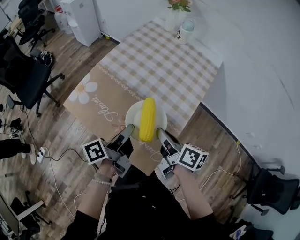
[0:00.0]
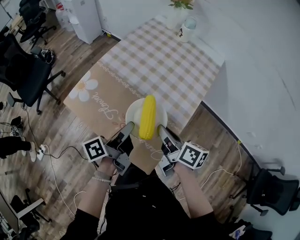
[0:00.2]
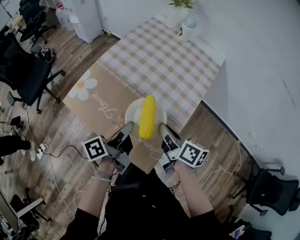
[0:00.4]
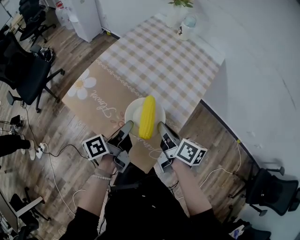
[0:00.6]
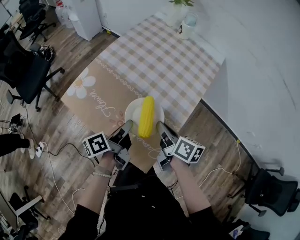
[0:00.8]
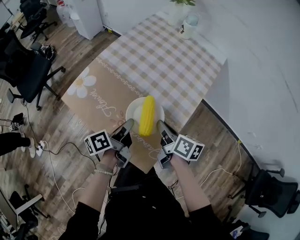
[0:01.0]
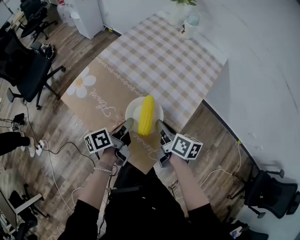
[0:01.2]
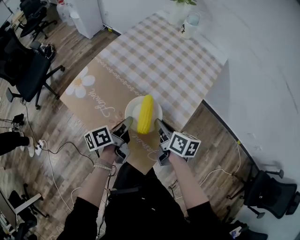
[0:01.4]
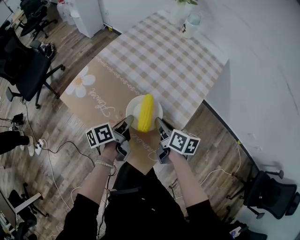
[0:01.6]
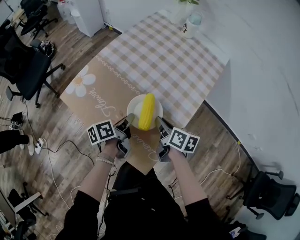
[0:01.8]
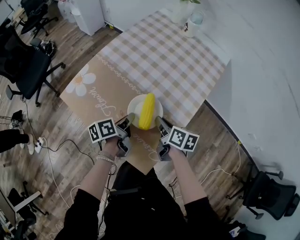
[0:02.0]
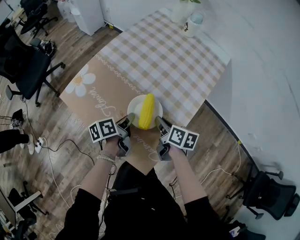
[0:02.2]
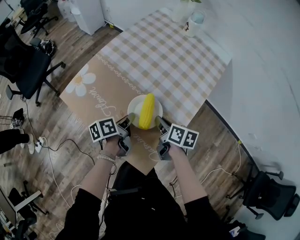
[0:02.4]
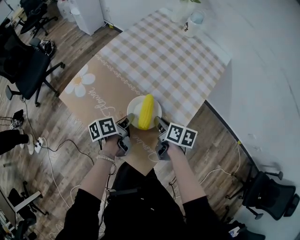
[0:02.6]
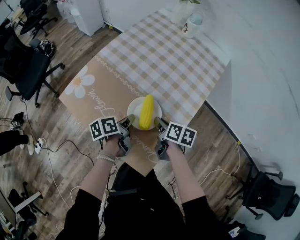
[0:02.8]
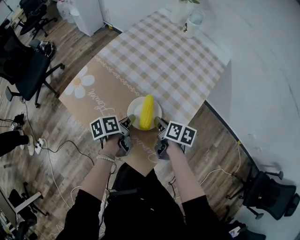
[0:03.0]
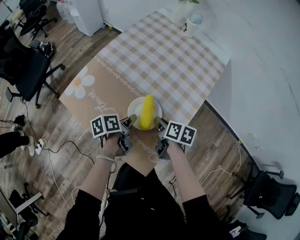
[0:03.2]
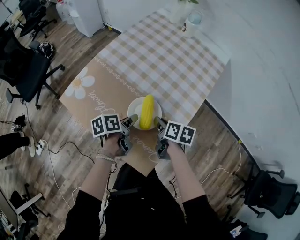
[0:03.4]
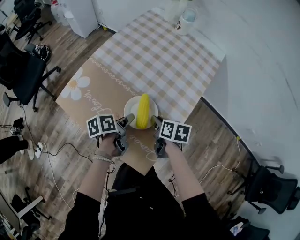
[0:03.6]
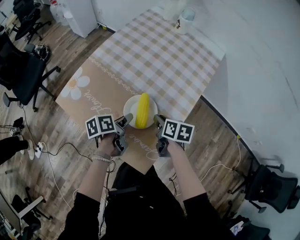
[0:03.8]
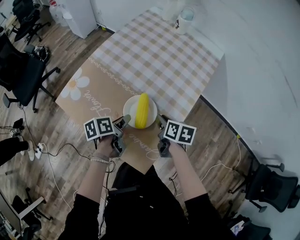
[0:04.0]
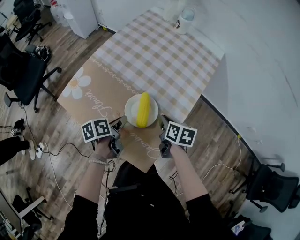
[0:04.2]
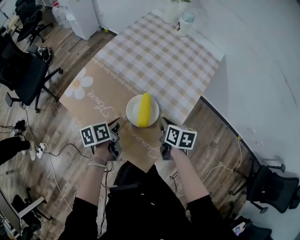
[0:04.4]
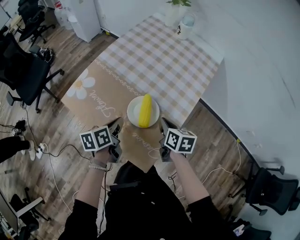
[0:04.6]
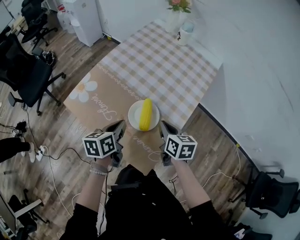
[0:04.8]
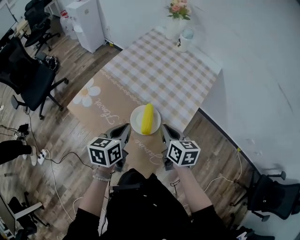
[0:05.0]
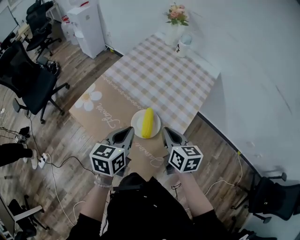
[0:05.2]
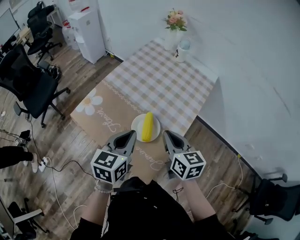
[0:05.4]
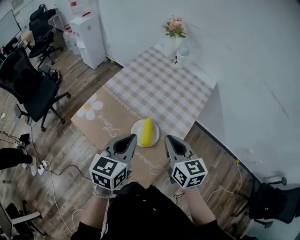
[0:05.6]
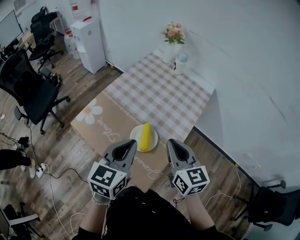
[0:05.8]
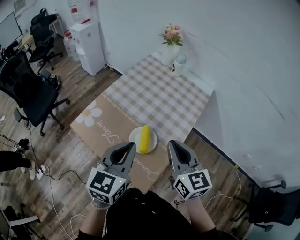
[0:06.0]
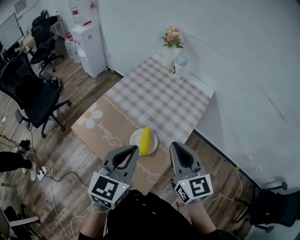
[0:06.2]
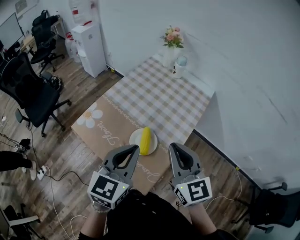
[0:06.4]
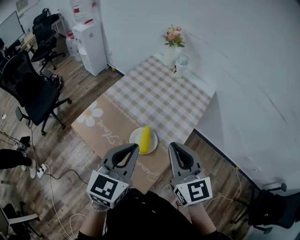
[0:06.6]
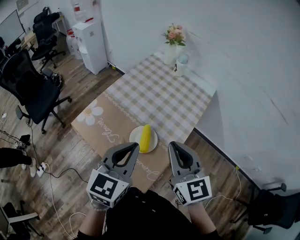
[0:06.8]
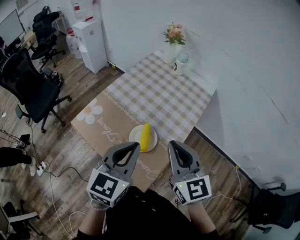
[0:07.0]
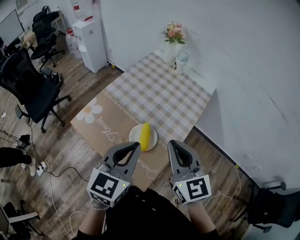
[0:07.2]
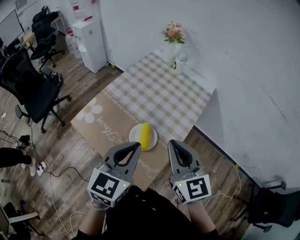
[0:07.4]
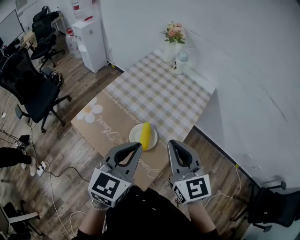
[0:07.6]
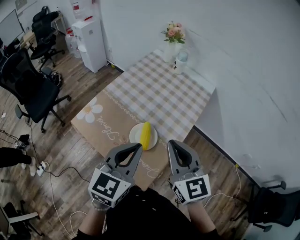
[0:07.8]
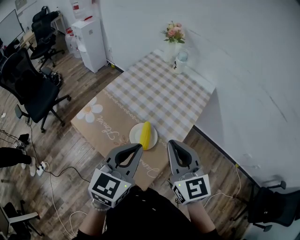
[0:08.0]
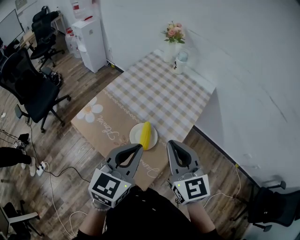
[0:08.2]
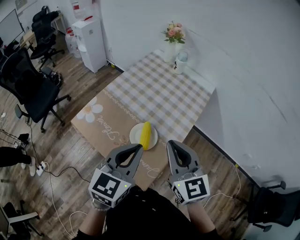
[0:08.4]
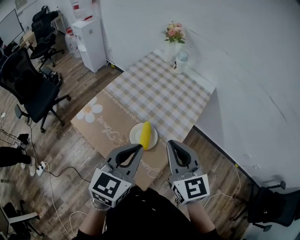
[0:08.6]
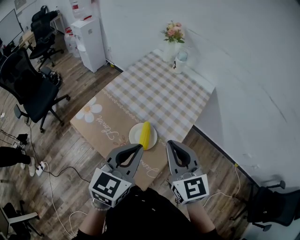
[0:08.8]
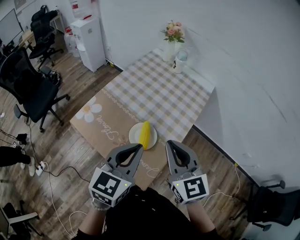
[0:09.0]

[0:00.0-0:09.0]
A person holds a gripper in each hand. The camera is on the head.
0:00.0 to 0:01.6: Both grippers travel together downward, approximately 10 cm.
0:01.6 to 0:03.0: The grippers move only a little.
0:03.0 to 0:04.4: The right gripper moves approximately 5 cm, while the left gripper changes place by about 5 cm, and opens, then closes once more.
0:04.4 to 0:06.0: Both grippers travel together upward, some 25 cm. The left gripper rotates around the line of its fingers by roughly 50 degrees, clockwise from behind; the right gripper points its fingers approximately 30 degrees further upward.
0:06.0 to 0:07.6: The grippers move only a little.
0:07.6 to 0:09.0: Neither gripper changes place.

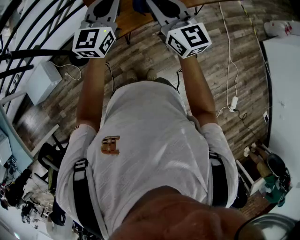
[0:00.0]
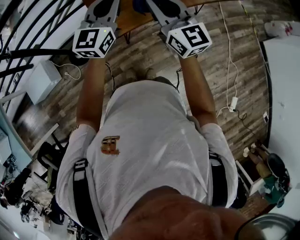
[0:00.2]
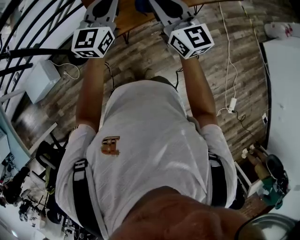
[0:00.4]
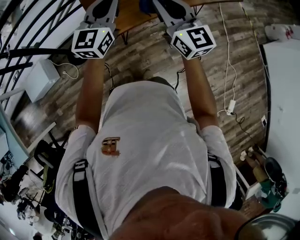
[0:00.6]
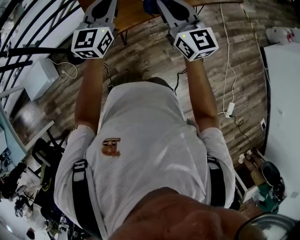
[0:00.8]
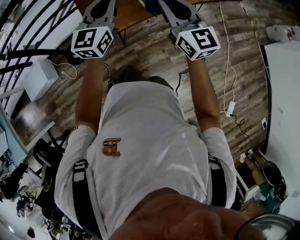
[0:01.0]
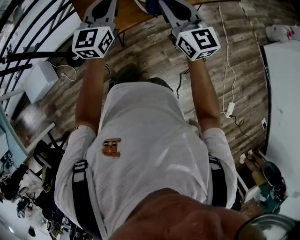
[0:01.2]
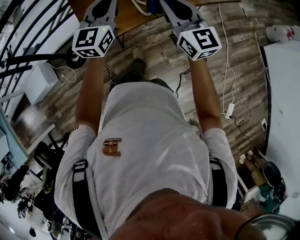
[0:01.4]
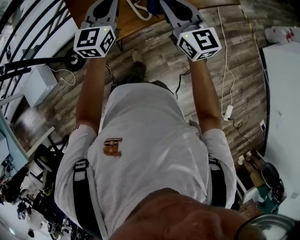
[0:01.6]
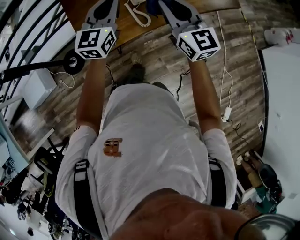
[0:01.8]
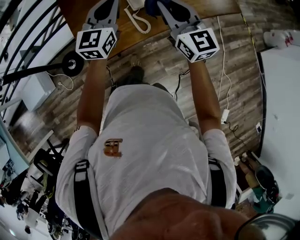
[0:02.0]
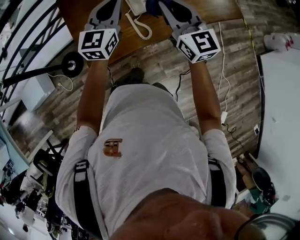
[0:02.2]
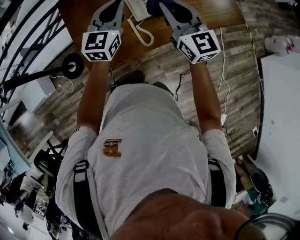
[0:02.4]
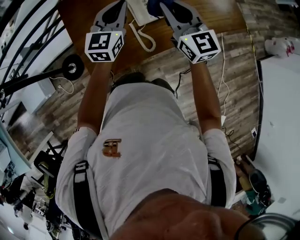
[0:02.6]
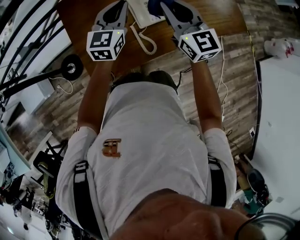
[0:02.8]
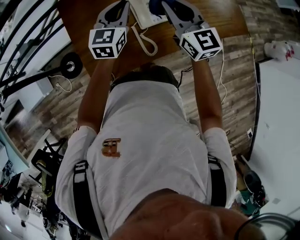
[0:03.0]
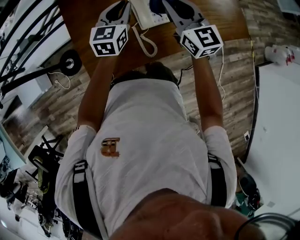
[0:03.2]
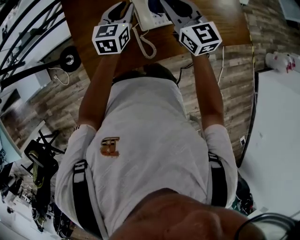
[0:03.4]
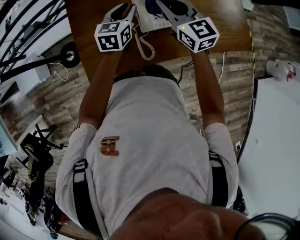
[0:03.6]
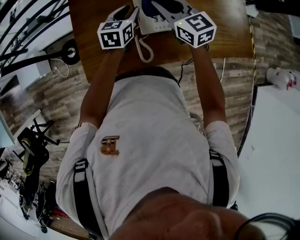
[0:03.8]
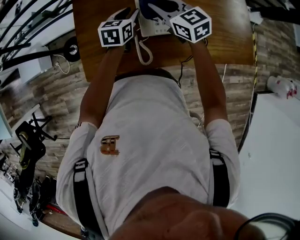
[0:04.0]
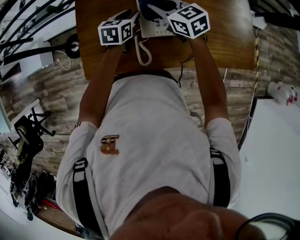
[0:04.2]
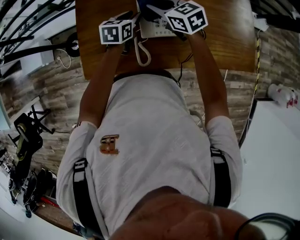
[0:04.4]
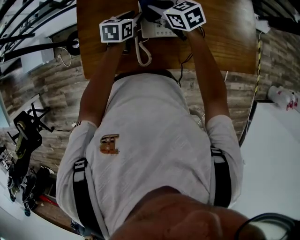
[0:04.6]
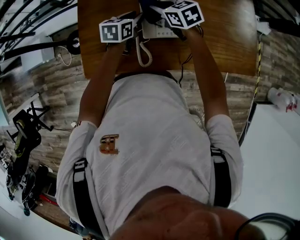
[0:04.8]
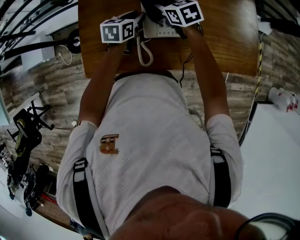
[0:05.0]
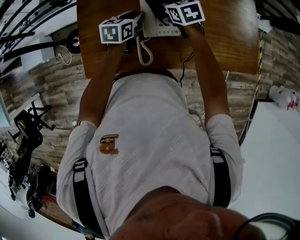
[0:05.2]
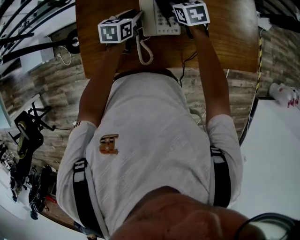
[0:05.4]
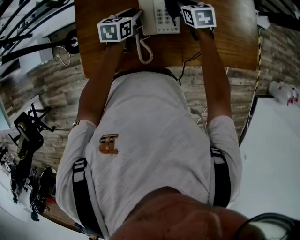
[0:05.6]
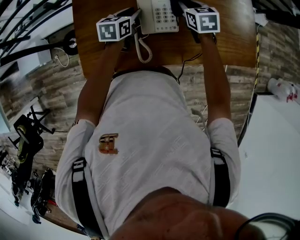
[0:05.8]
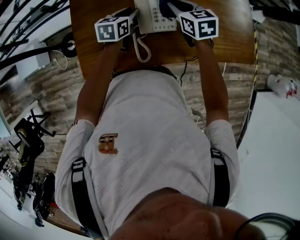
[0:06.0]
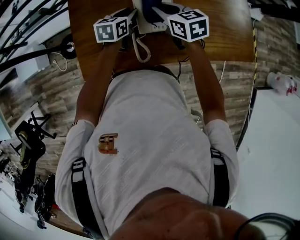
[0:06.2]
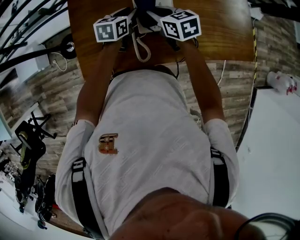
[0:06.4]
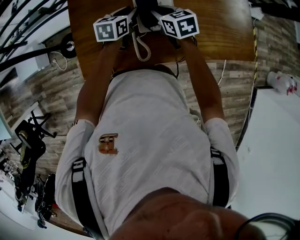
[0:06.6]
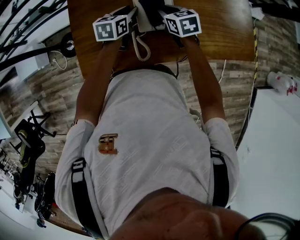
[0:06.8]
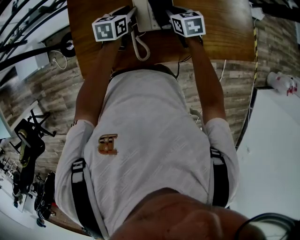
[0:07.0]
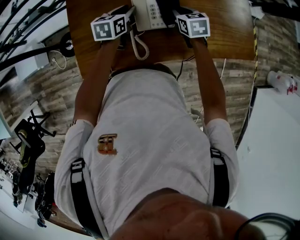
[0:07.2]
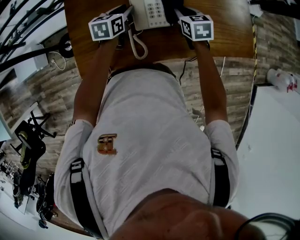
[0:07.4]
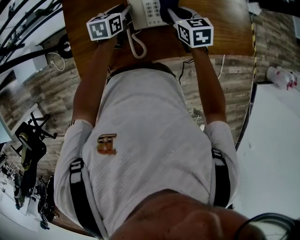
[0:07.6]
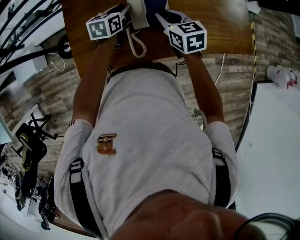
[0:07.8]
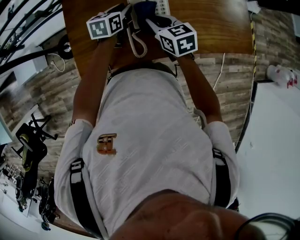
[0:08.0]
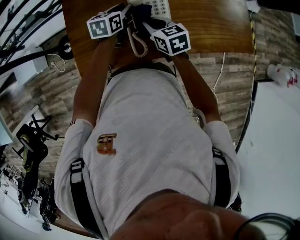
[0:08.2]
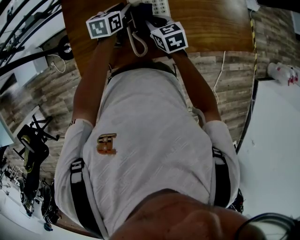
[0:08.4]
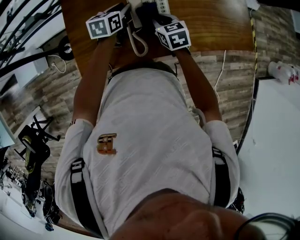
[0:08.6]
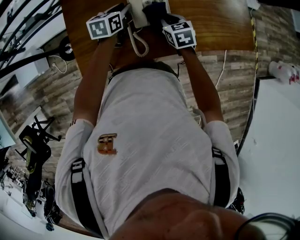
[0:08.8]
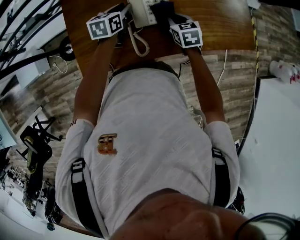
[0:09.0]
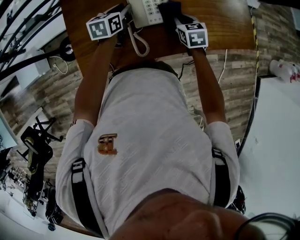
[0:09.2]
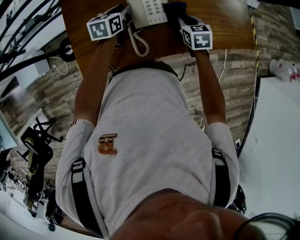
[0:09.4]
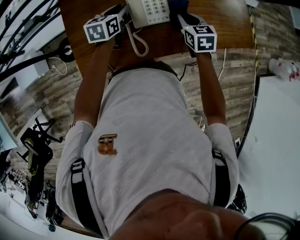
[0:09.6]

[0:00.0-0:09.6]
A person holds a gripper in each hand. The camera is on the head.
0:00.0 to 0:01.6: Both grippers move to the right and forward, approximately 20 cm.
0:01.6 to 0:03.2: Both grippers travel together forward, approximately 35 cm. The left gripper rotates about 20 degrees.
0:03.2 to 0:04.8: The right gripper goes roughly 20 cm downward and forward, and turns by approximately 50 degrees, while the left gripper goes roughly 10 cm downward, and rotates some 30 degrees.
0:04.8 to 0:06.4: The right gripper goes some 5 cm backward, and goes to the right and returns, roughly 10 cm each way.
0:06.4 to 0:08.0: The right gripper shifts roughly 5 cm backward, and moves about 10 cm to the right and comes back.
0:08.0 to 0:09.6: The right gripper shifts roughly 10 cm to the right.

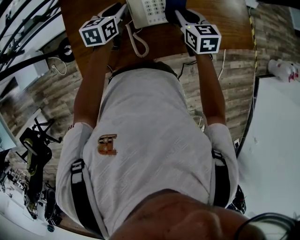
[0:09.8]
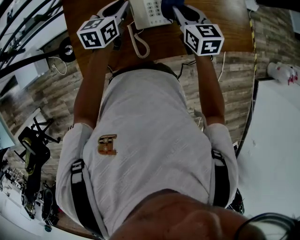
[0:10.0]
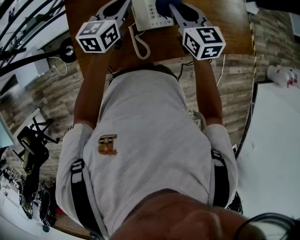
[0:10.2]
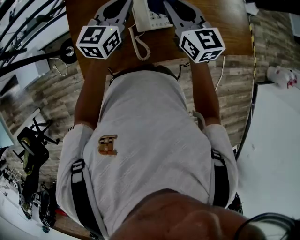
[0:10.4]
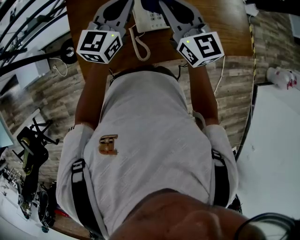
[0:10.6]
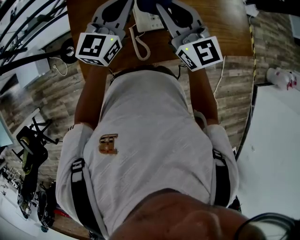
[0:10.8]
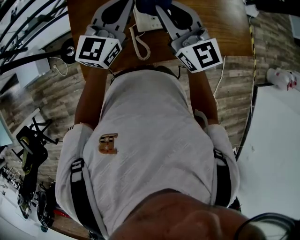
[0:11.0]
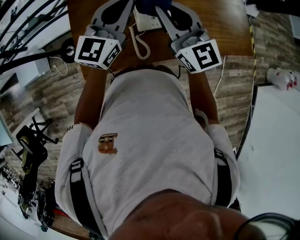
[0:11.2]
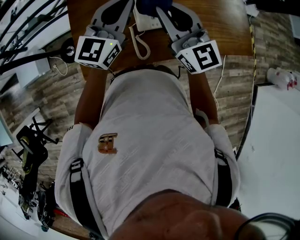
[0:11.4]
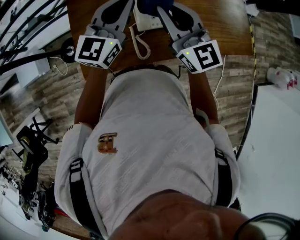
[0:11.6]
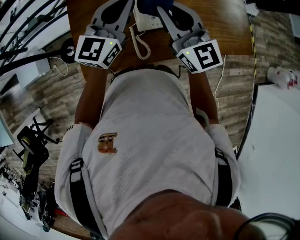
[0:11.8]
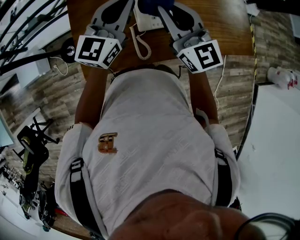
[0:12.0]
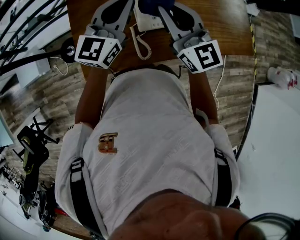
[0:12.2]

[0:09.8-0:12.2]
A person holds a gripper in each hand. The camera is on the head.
0:09.8 to 0:11.0: The right gripper moves upward and to the left, approximately 20 cm, and tilts its fingers approximately 40 degrees upward. The left gripper shifts some 20 cm upward, angles its fingers upward, by roughly 30 degrees, and closes up.
0:11.0 to 0:12.2: Both grippers stay put.

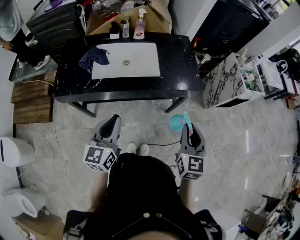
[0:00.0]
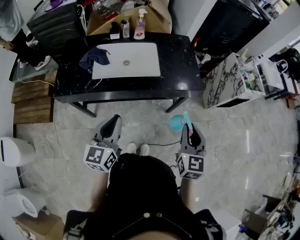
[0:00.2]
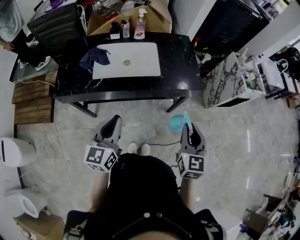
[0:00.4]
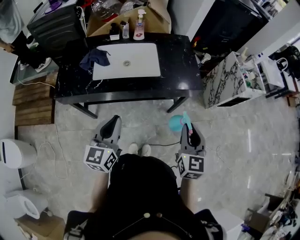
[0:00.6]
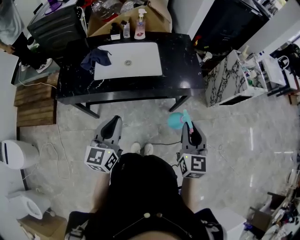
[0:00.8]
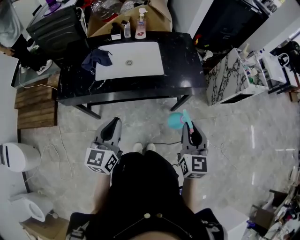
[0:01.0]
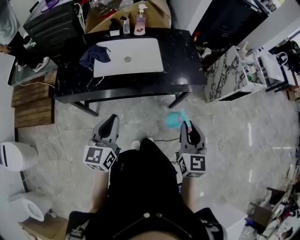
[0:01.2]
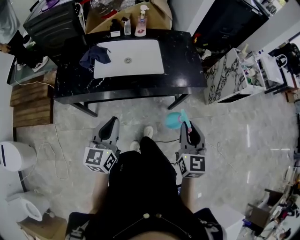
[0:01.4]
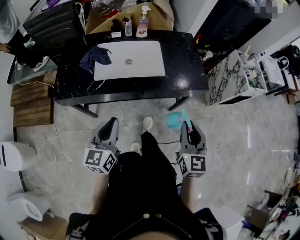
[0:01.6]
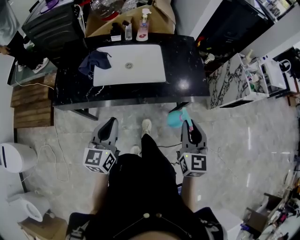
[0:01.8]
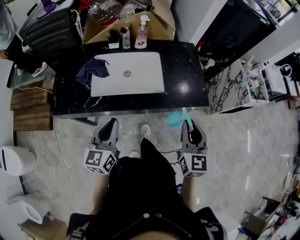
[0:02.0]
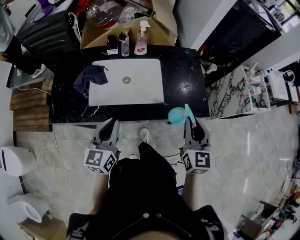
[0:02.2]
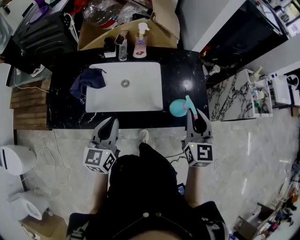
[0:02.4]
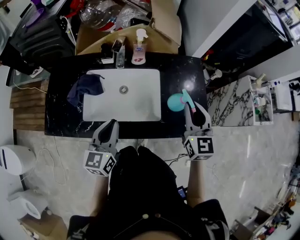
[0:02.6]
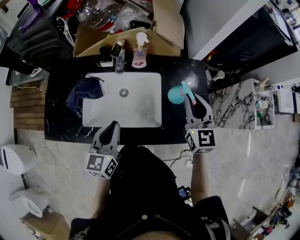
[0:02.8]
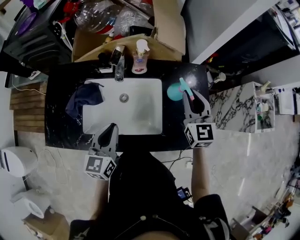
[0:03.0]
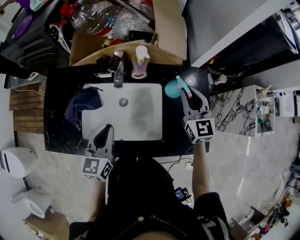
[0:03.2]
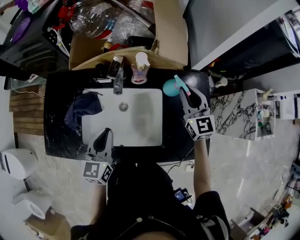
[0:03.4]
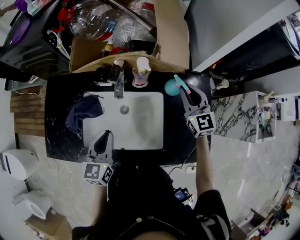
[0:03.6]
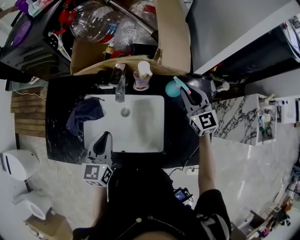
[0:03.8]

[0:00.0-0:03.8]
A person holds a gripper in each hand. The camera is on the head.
0:00.0 to 0:01.2: The grippers make only small movements.
0:01.2 to 0:02.6: The grippers both shift forward by approximately 30 cm.
0:02.6 to 0:03.8: The left gripper is displaced forward by about 10 cm, while the right gripper travels forward by some 25 cm, and changes its angle by approximately 20 degrees.
